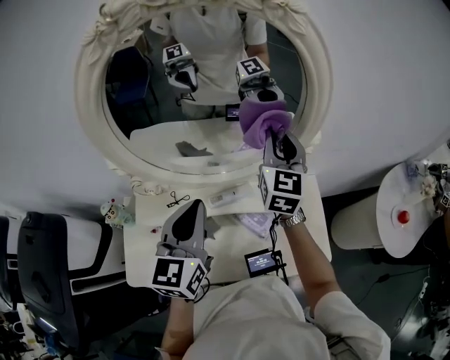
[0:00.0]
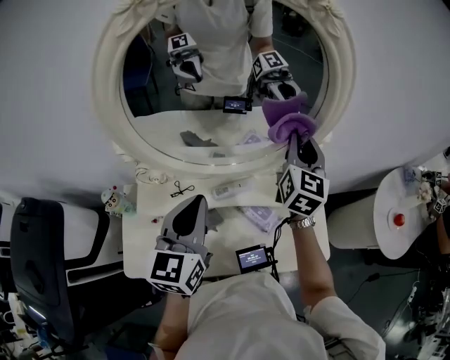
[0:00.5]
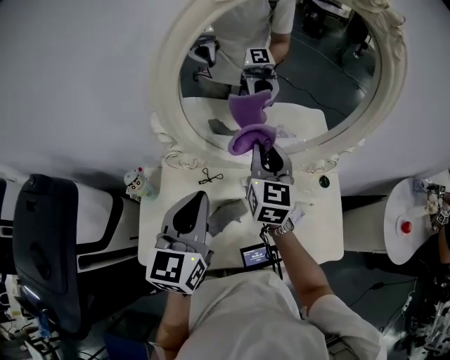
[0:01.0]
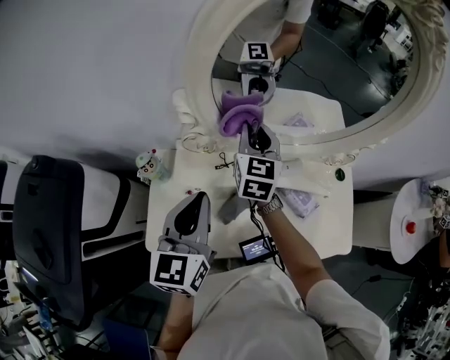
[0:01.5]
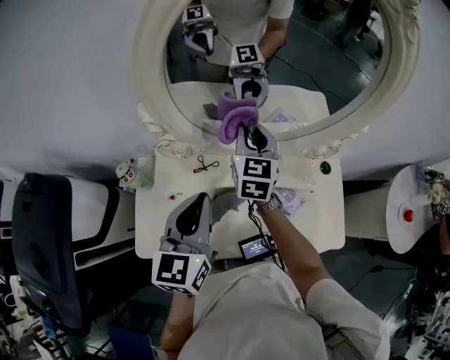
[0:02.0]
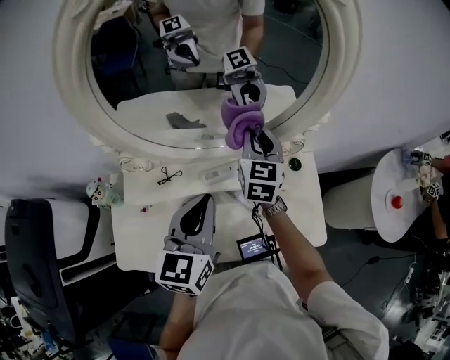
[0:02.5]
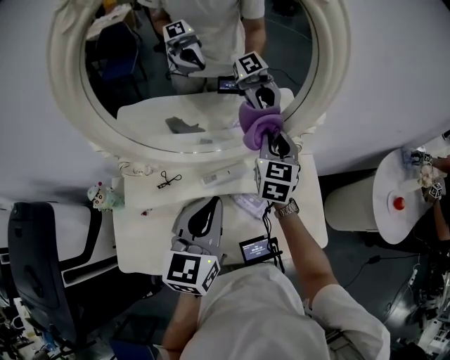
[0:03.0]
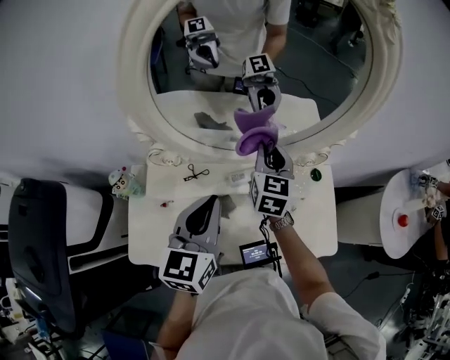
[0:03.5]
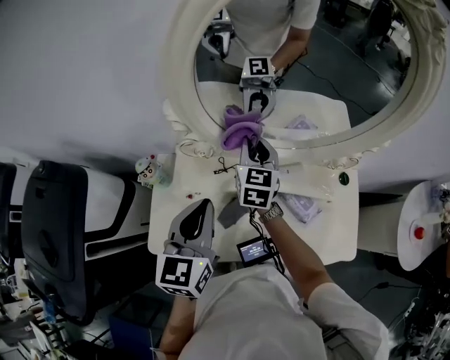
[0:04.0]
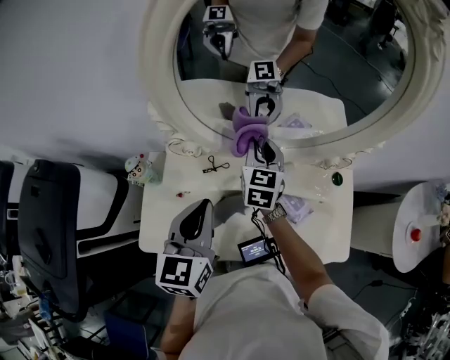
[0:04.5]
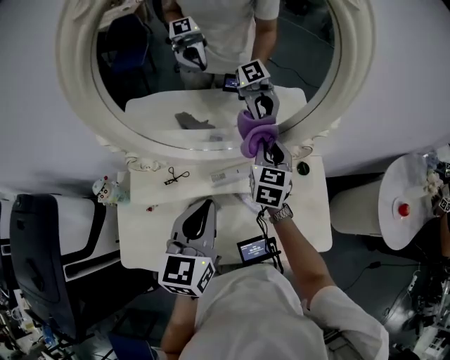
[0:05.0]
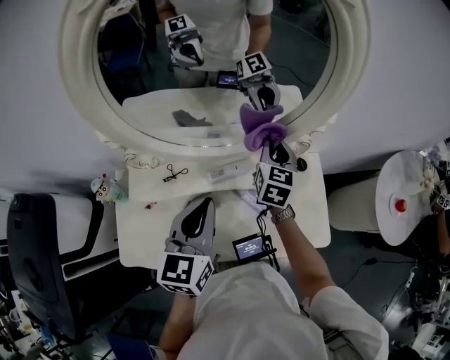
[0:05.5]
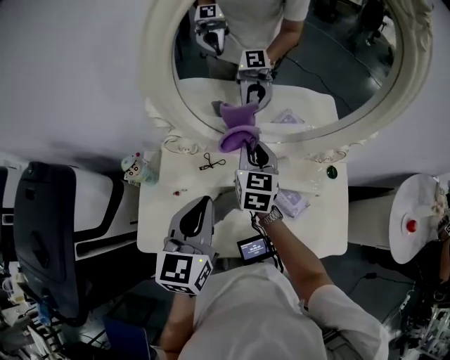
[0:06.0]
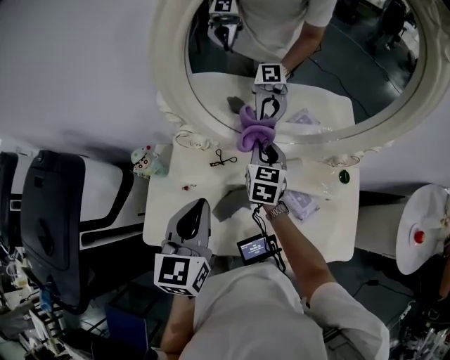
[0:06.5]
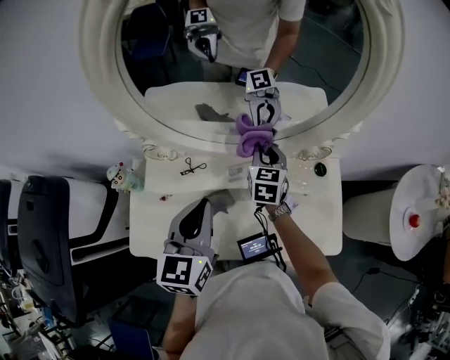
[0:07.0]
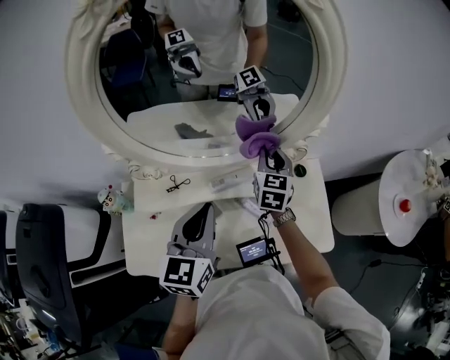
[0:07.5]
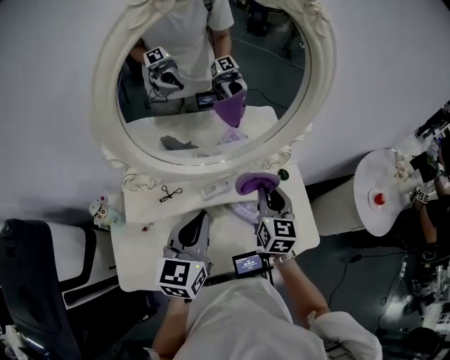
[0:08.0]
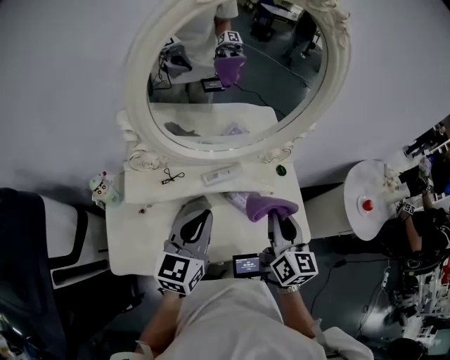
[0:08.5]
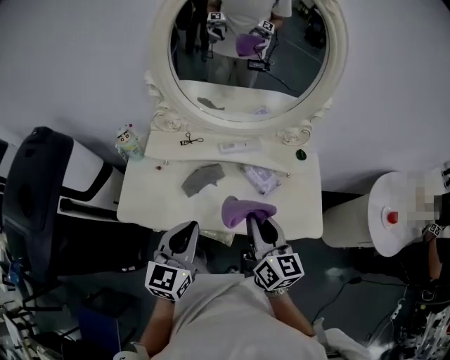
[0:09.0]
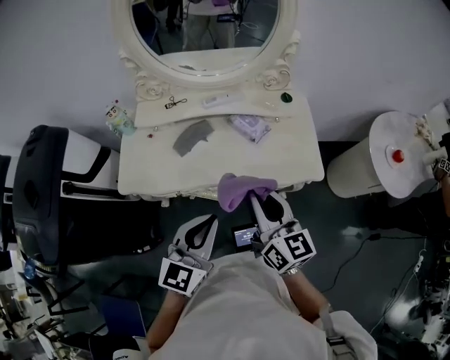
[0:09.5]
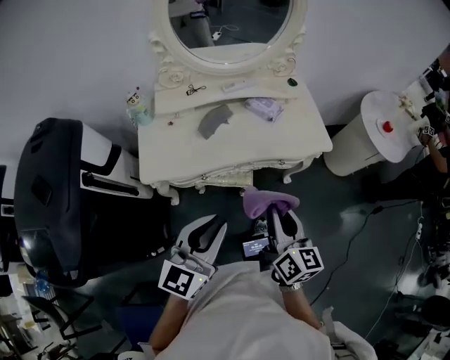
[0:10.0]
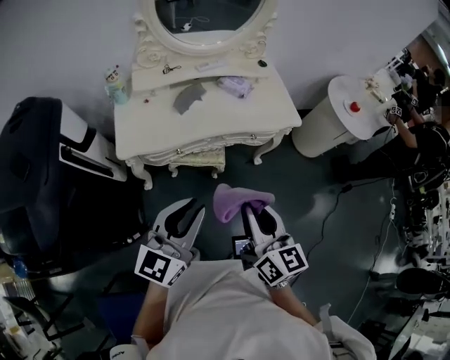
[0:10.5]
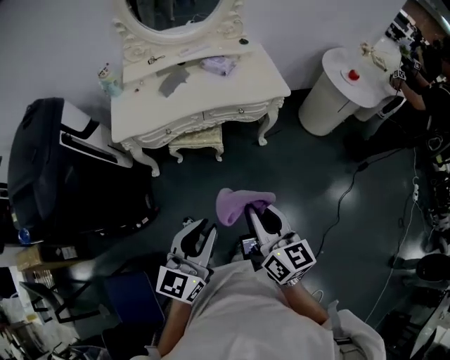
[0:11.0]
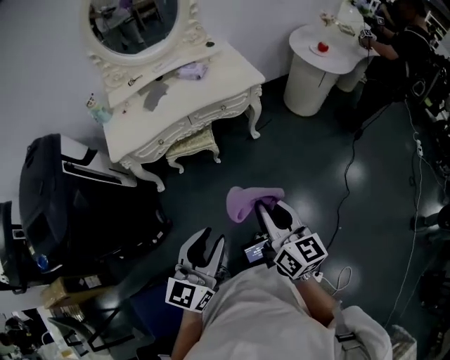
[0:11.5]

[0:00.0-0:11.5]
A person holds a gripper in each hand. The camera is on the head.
0:00.0 to 0:02.0: The left gripper shifts roughly 10 cm to the left and backward. The right gripper is displaced to the left and downward by about 25 cm.
0:02.0 to 0:04.0: The left gripper goes to the right and returns, some 15 cm each way, while the right gripper moves about 20 cm to the right and comes back.
0:04.0 to 0:06.0: The left gripper moves approximately 15 cm to the right and comes back. Meanwhile the right gripper travels to the right and back again, some 25 cm each way.
0:06.0 to 0:07.5: The right gripper travels to the right by some 20 cm. Meanwhile the left gripper moves to the right, approximately 10 cm.
0:07.5 to 0:09.5: The grippers both shift backward by some 40 cm. The right gripper rotates approximately 40 degrees.
0:09.5 to 0:11.5: The pair of grippers is taken backward, roughly 50 cm. The left gripper opens. Meanwhile the right gripper turns by roughly 20 degrees.

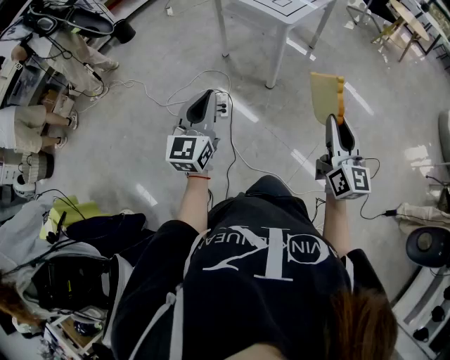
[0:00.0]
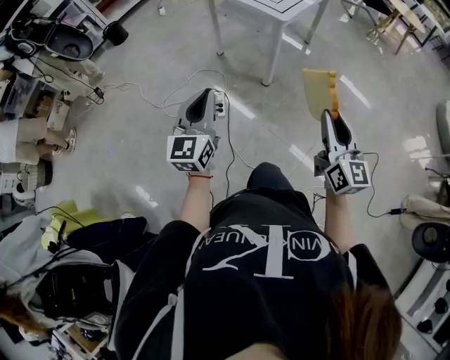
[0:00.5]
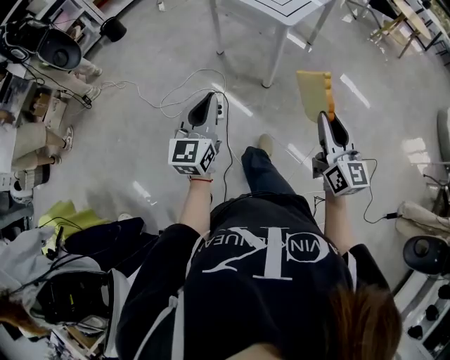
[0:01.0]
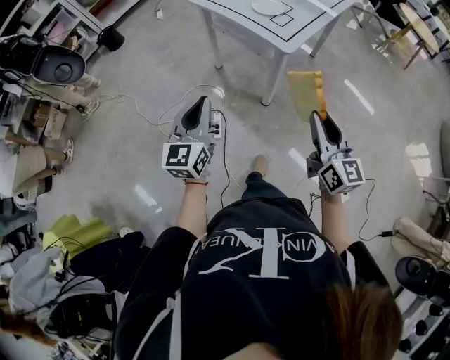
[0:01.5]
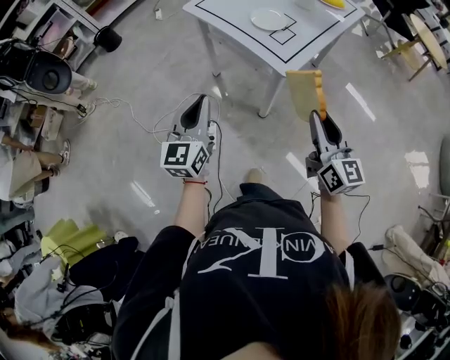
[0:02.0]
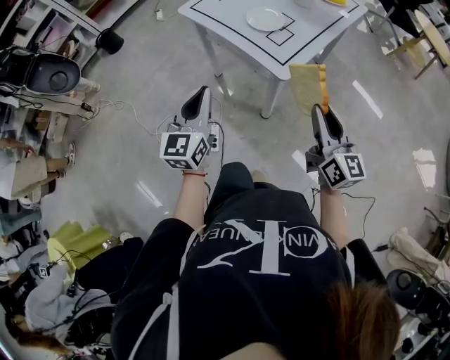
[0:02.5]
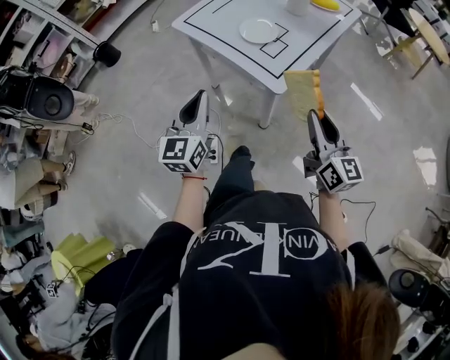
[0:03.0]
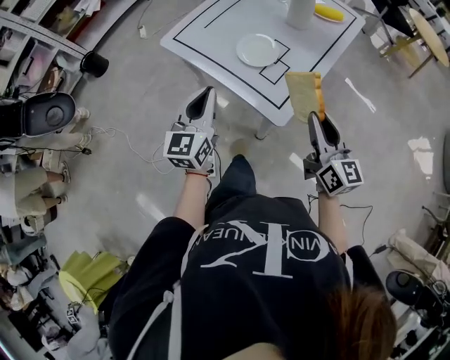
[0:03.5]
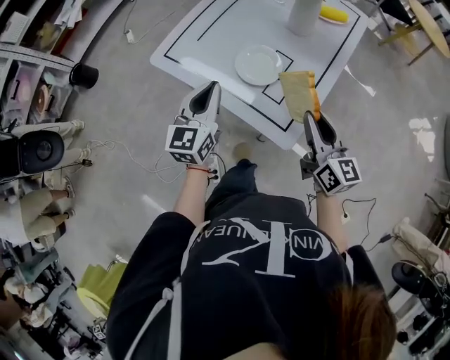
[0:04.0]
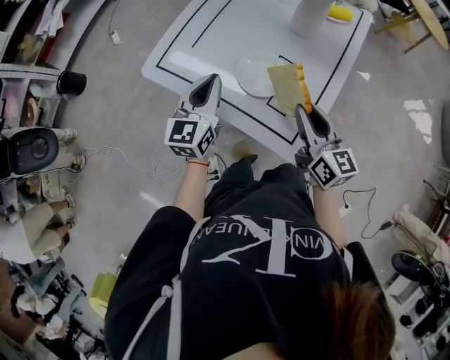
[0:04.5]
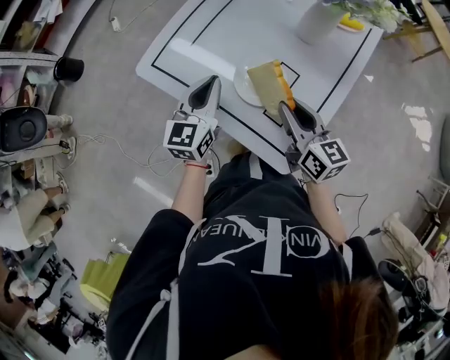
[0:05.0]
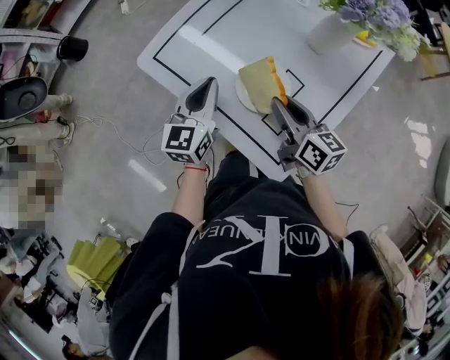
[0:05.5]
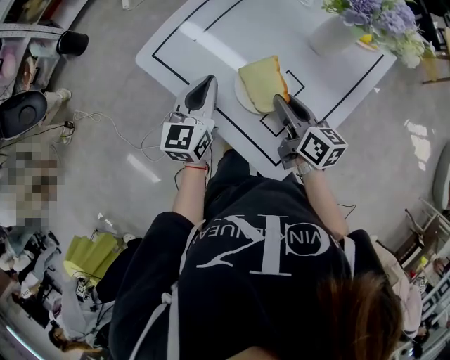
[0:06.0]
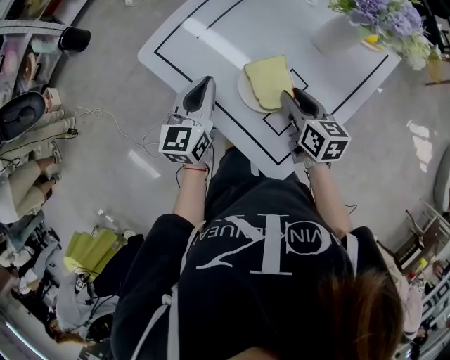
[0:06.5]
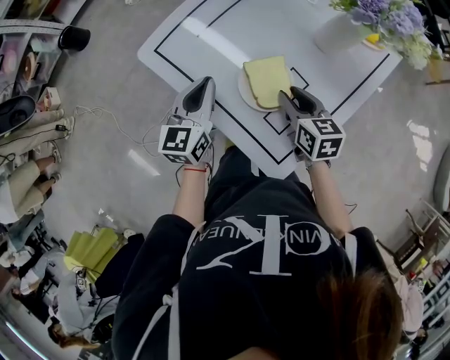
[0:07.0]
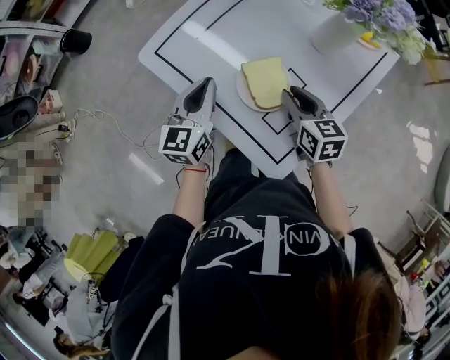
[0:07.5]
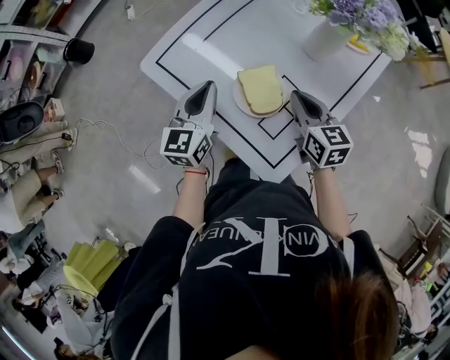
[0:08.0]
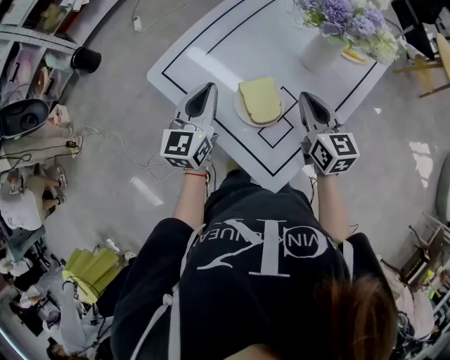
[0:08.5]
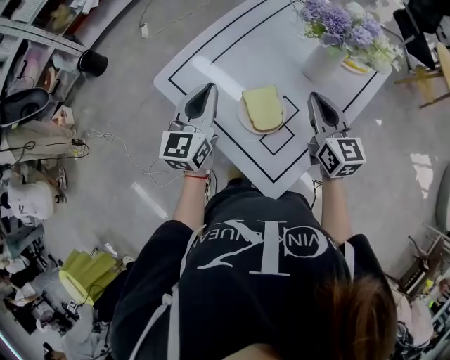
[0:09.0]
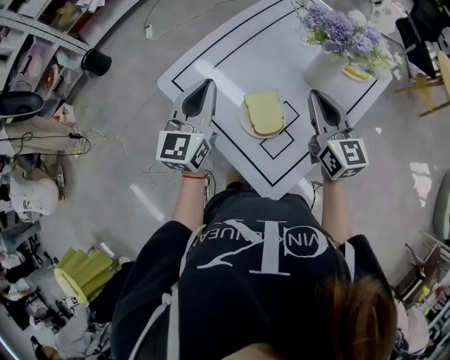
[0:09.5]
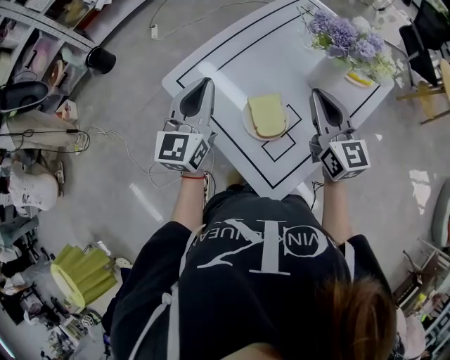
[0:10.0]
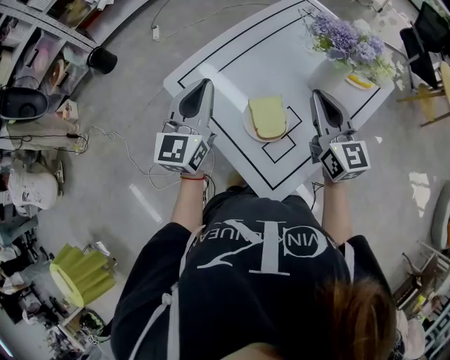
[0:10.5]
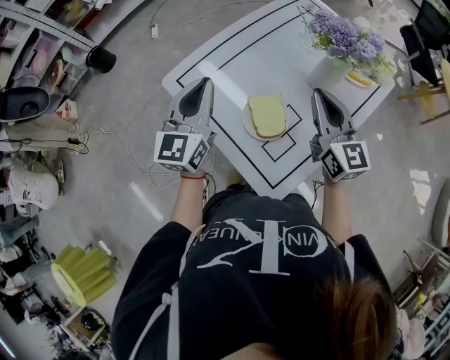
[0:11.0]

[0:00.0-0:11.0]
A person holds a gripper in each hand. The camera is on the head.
0:00.0 to 0:02.0: The grippers both shift forward by about 35 cm.
0:02.0 to 0:03.5: The two grippers go approximately 20 cm forward.
0:03.5 to 0:05.5: Both grippers move forward, about 25 cm. The right gripper turns by roughly 30 degrees.
0:05.5 to 0:07.5: The right gripper turns by approximately 30 degrees.
0:07.5 to 0:09.0: The left gripper shifts roughly 10 cm upward. Meanwhile the right gripper moves upward and to the right, some 15 cm, swivels some 20 degrees, and closes.
0:09.0 to 0:11.0: Both grippers move upward, some 5 cm.

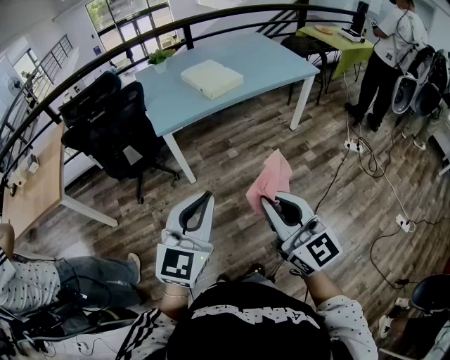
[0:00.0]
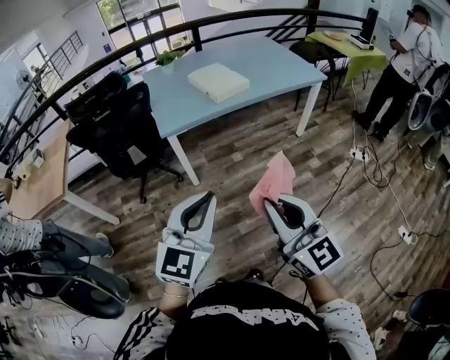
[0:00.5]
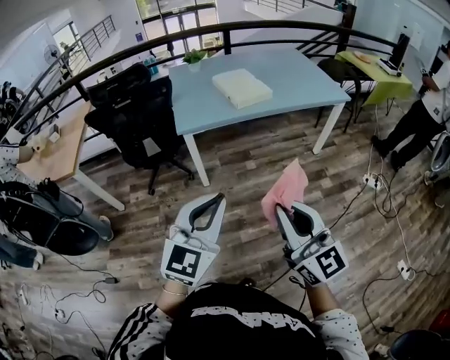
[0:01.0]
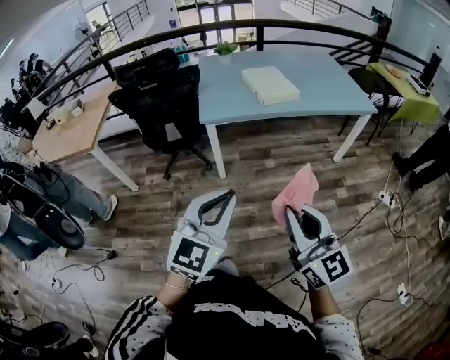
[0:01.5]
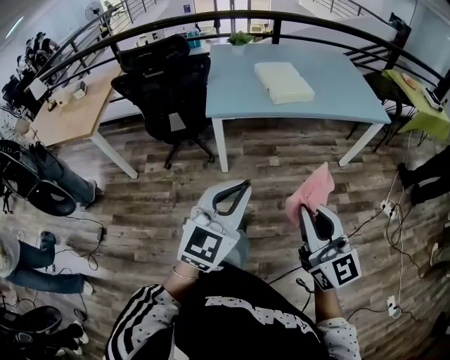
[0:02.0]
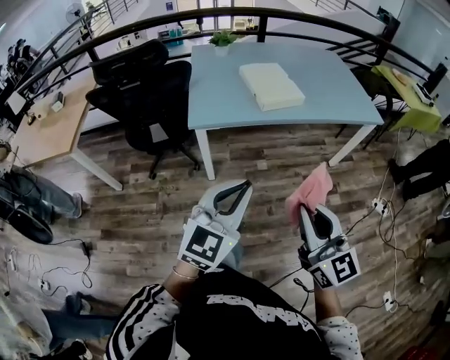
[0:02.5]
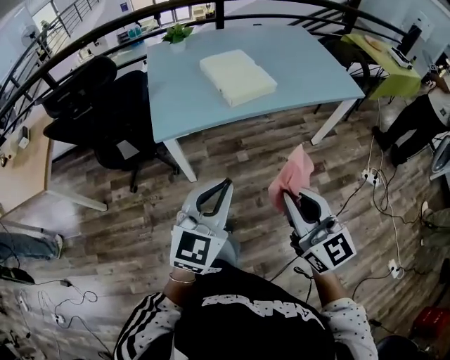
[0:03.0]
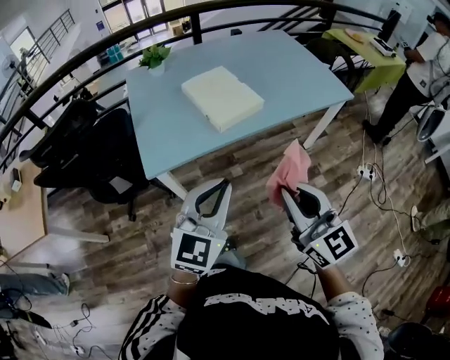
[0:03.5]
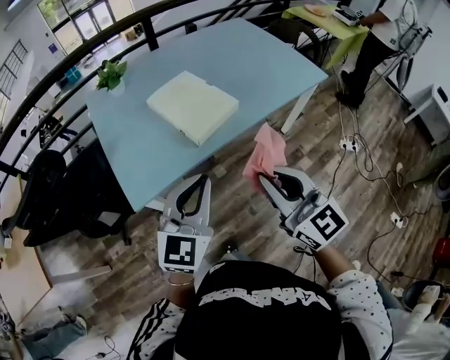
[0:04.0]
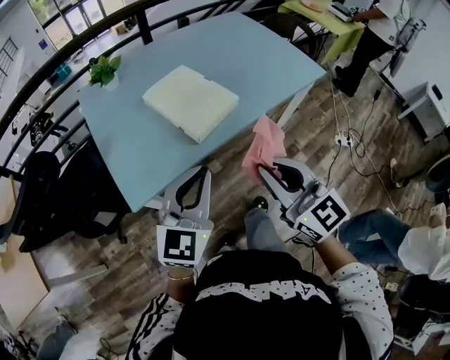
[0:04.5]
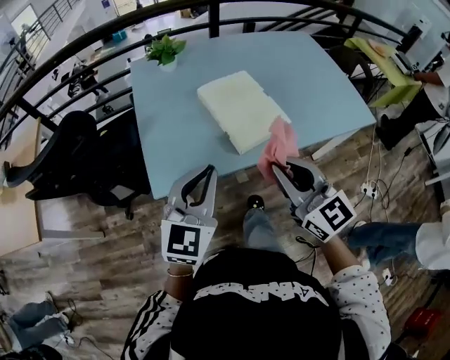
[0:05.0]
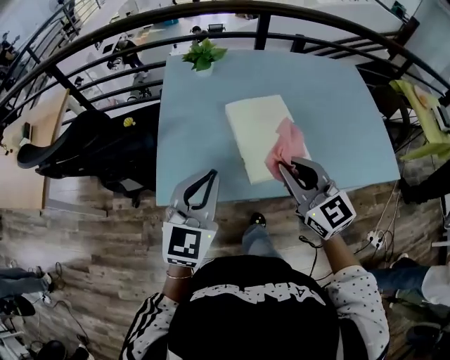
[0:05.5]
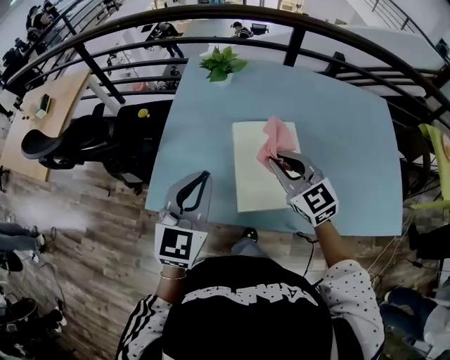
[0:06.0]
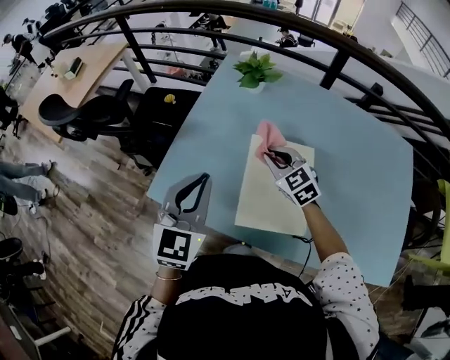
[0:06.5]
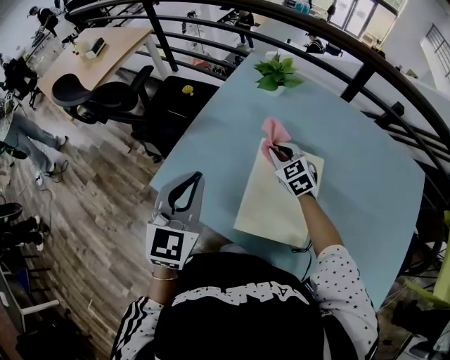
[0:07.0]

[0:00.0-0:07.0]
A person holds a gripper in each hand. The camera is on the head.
0:00.0 to 0:02.0: Both grippers travel together forward and to the right, approximately 10 cm.
0:02.0 to 0:03.5: Both grippers move forward, roughly 35 cm.
0:03.5 to 0:05.0: The right gripper travels forward by approximately 20 cm, while the left gripper travels forward and to the left by some 20 cm.
0:05.0 to 0:07.0: The left gripper changes place by approximately 20 cm, and turns by about 50 degrees. Meanwhile the right gripper changes place by approximately 50 cm, and rotates about 50 degrees.
